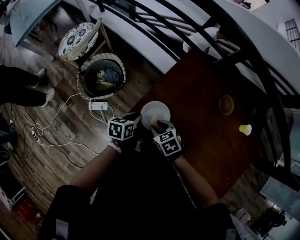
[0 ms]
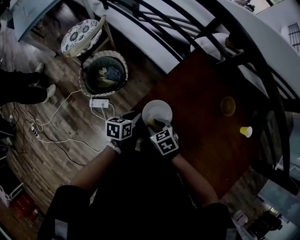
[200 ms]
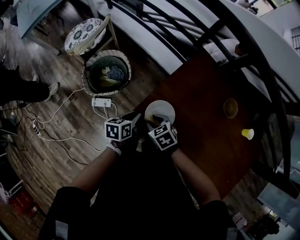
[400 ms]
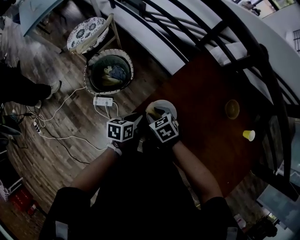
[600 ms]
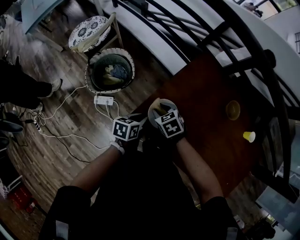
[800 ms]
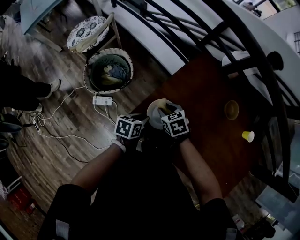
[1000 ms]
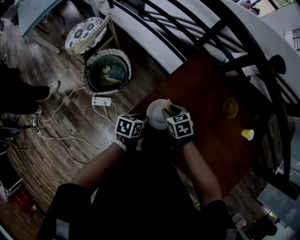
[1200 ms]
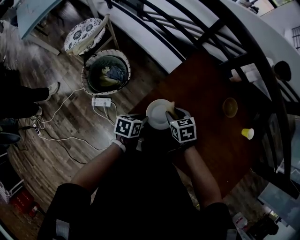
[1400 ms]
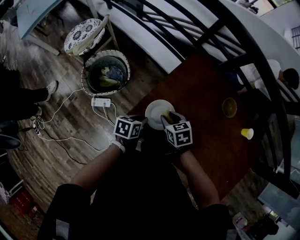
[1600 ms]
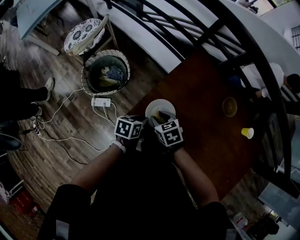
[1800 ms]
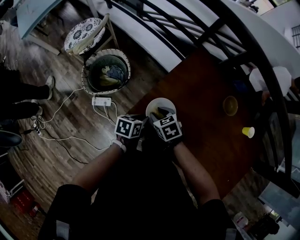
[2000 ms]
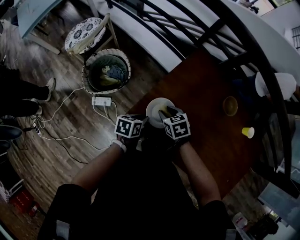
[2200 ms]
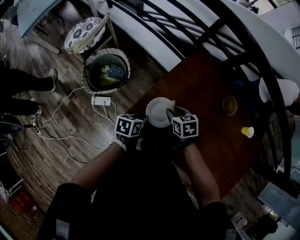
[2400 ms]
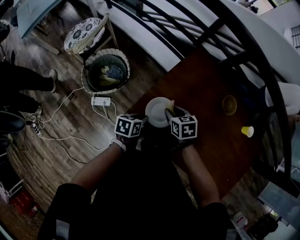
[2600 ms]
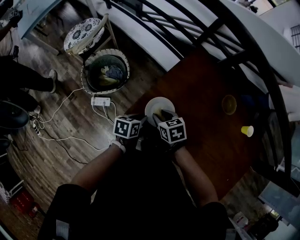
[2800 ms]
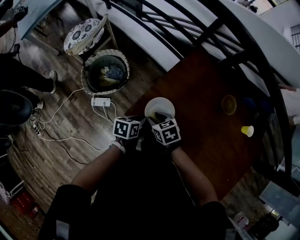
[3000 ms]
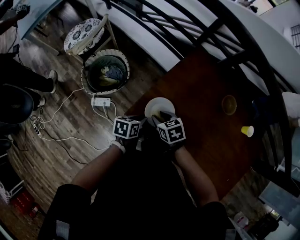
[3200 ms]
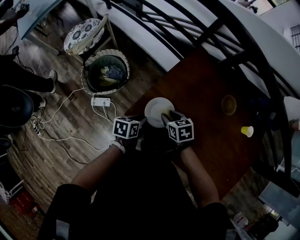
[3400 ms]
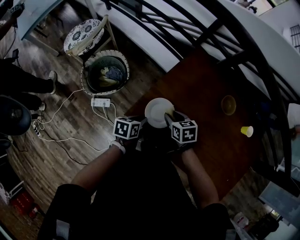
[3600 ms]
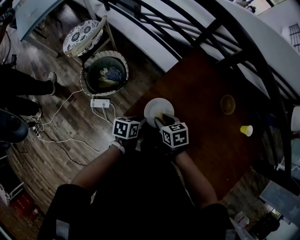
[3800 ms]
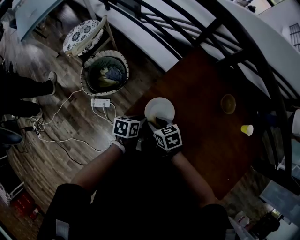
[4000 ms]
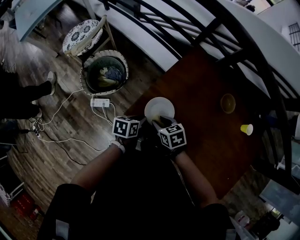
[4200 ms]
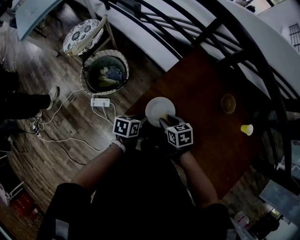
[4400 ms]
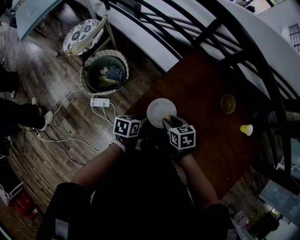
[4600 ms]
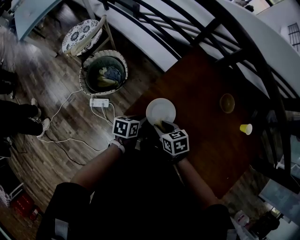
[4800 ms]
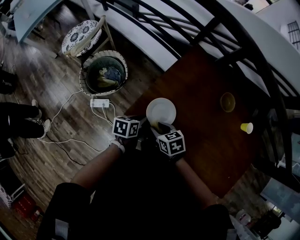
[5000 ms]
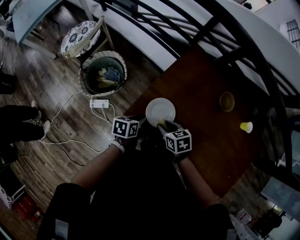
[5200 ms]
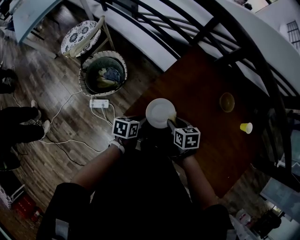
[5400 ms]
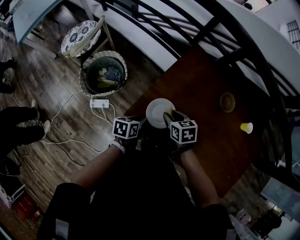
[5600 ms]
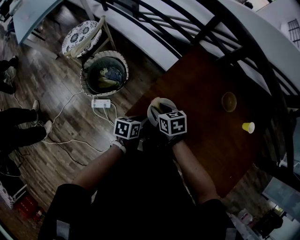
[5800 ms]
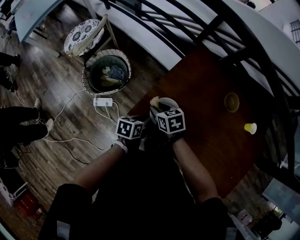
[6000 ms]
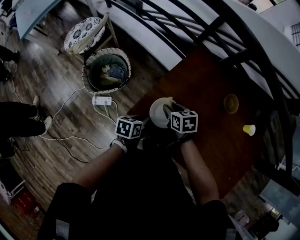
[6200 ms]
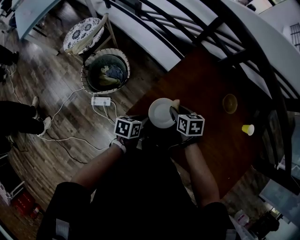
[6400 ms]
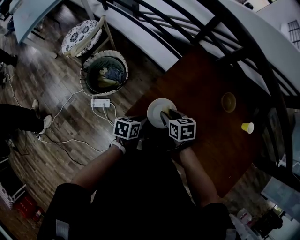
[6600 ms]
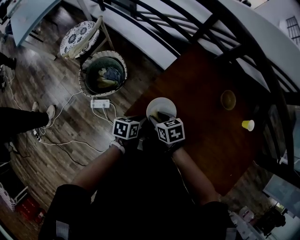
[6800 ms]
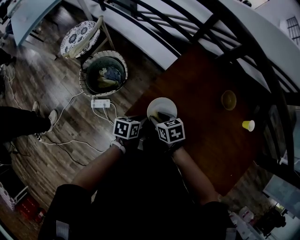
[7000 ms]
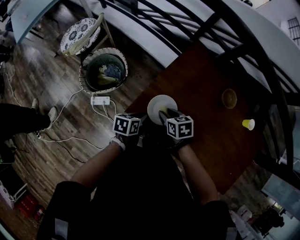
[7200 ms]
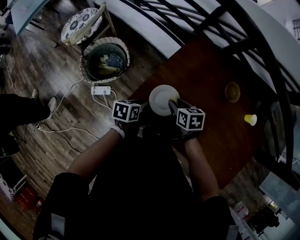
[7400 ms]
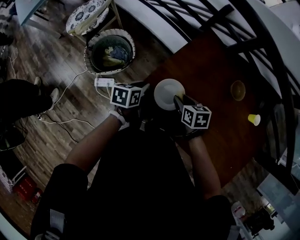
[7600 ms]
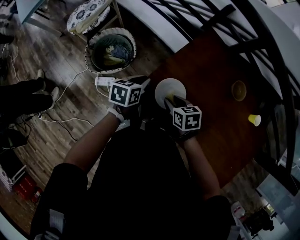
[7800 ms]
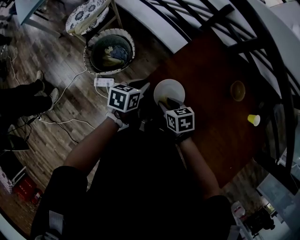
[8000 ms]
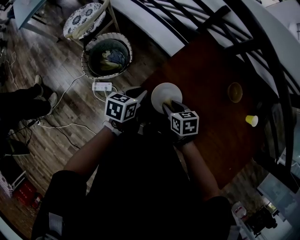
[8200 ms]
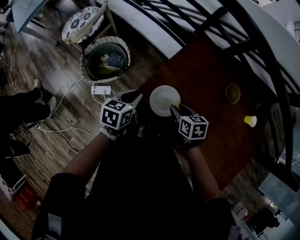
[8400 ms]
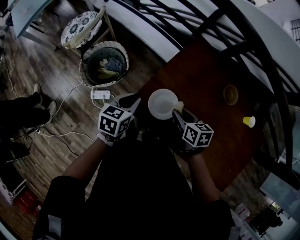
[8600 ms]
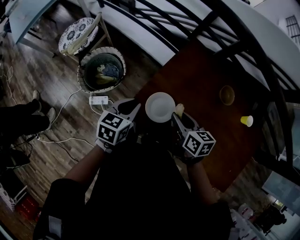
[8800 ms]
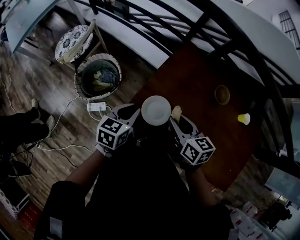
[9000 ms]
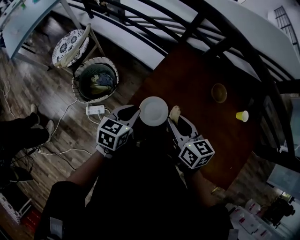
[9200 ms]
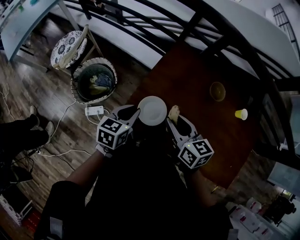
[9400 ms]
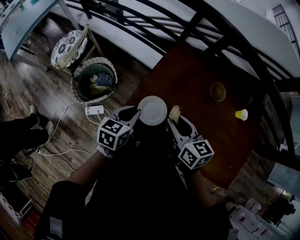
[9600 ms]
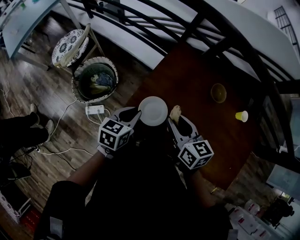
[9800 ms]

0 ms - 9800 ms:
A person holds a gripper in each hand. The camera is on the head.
0 ms - 1400 ms: The right gripper travels forward by some 5 cm.
1400 ms - 2800 ms: The right gripper swings left and right, roughly 5 cm each way, with 2 reversals.
2800 ms - 4200 ms: The right gripper moves some 5 cm to the right and comes back.
4200 ms - 5600 ms: The right gripper swings left and right, some 10 cm each way, with 2 reversals.
5600 ms - 7000 ms: The right gripper goes left and right, some 10 cm each way, reversing 2 times.
7000 ms - 8400 ms: The right gripper moves left and right over about 10 cm, changing direction 2 times. The left gripper heads upward and forward, covering about 10 cm.
8400 ms - 9800 ms: The right gripper shifts some 15 cm upward, and changes its angle by approximately 30 degrees. Meanwhile the left gripper goes some 5 cm to the right and upward.

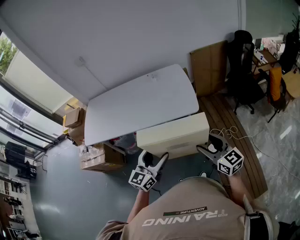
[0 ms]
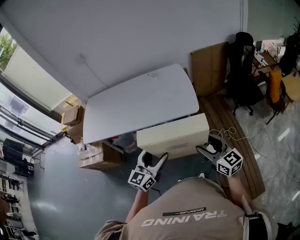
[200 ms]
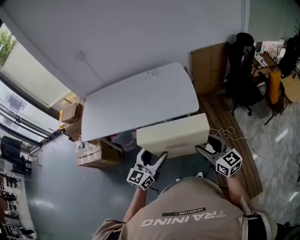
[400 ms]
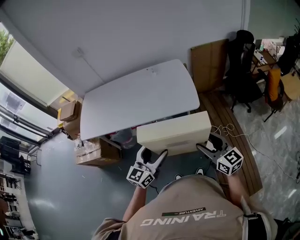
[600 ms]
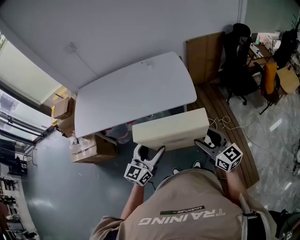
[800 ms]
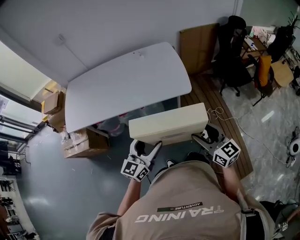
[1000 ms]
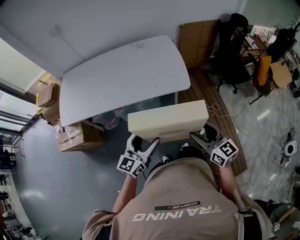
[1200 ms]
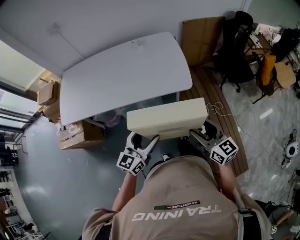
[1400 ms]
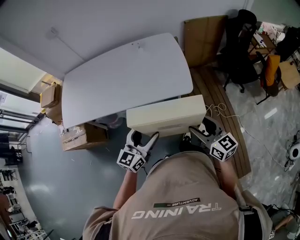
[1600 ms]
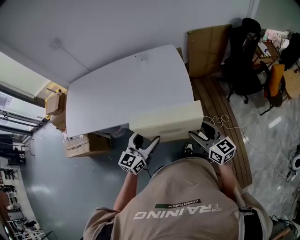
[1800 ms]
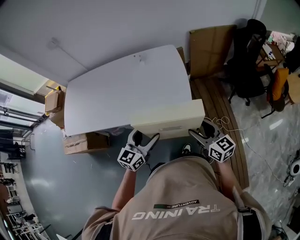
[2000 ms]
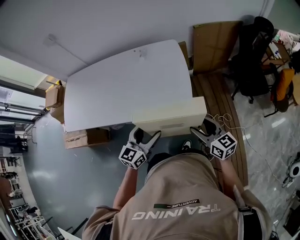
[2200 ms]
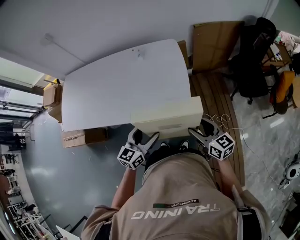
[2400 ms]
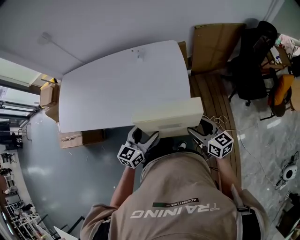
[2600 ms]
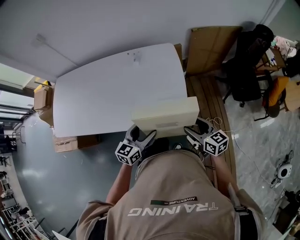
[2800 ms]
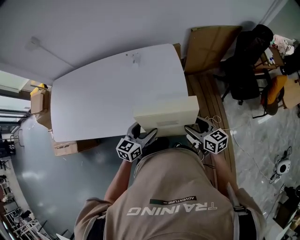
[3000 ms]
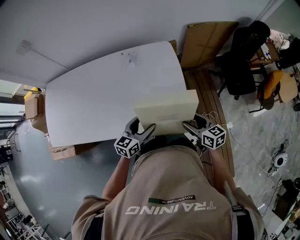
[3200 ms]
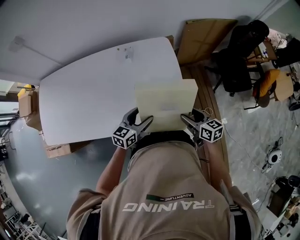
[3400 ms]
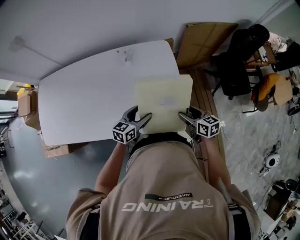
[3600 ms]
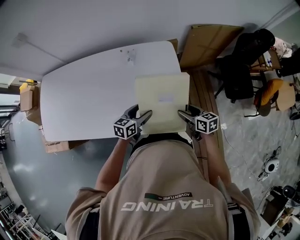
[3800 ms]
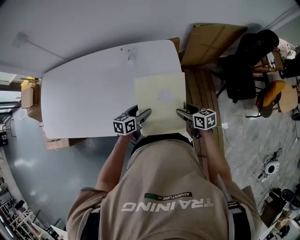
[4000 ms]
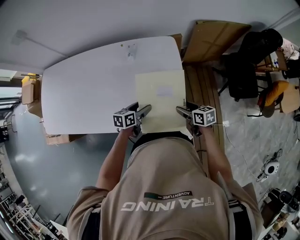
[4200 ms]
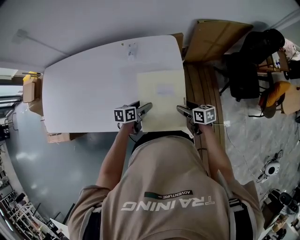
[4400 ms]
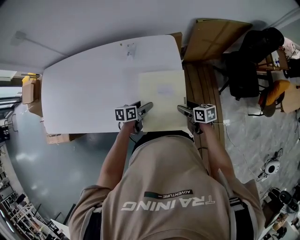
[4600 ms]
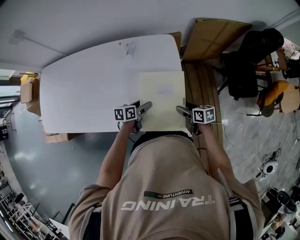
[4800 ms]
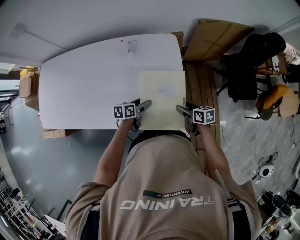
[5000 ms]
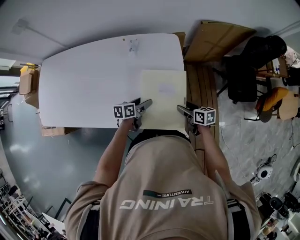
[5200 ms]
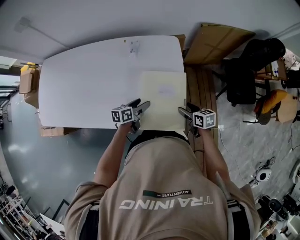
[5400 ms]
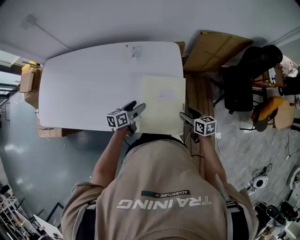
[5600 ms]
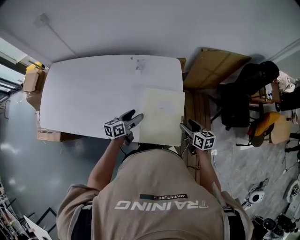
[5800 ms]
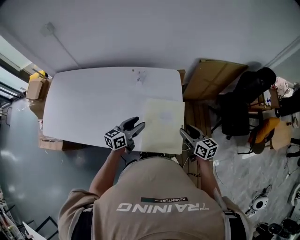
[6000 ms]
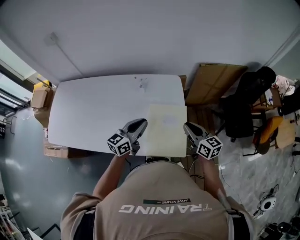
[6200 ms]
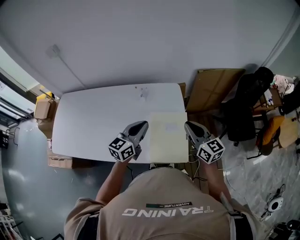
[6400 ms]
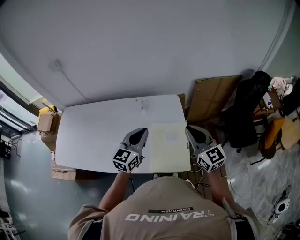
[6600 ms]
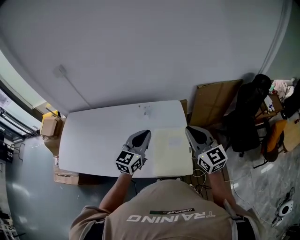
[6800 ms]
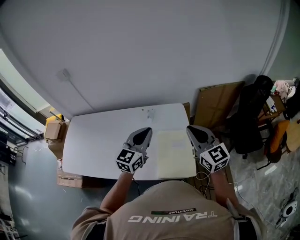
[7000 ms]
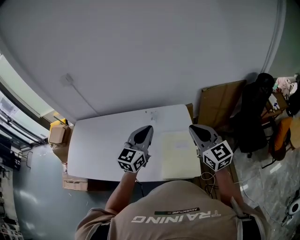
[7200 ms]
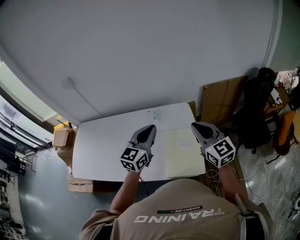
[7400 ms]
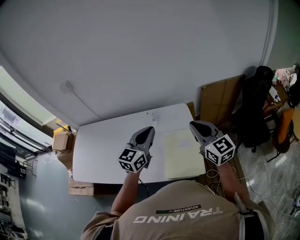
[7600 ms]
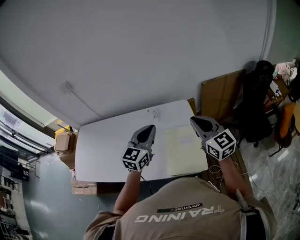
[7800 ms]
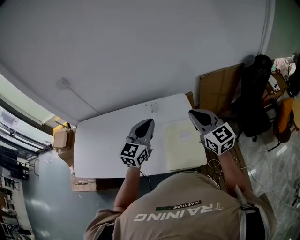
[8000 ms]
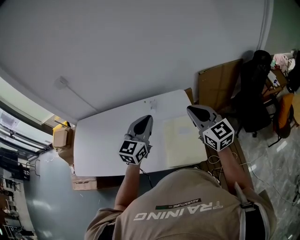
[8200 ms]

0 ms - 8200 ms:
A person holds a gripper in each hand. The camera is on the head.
0 ms - 1600 ms: The grippers both shift forward and downward by about 10 cm.
1600 ms - 3200 ms: The grippers both shift forward and downward by roughly 30 cm. The right gripper rotates roughly 20 degrees.
3200 ms - 5000 ms: The two grippers go roughly 15 cm downward and forward. The left gripper rotates approximately 40 degrees; the right gripper swivels roughly 20 degrees.
5000 ms - 6600 ms: Both grippers move upward, some 30 cm. The right gripper points its fingers some 40 degrees further upward, and closes its fingers; the left gripper swivels roughly 60 degrees, and closes up.
6600 ms - 8200 ms: The two grippers go about 5 cm upward.

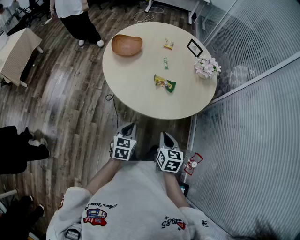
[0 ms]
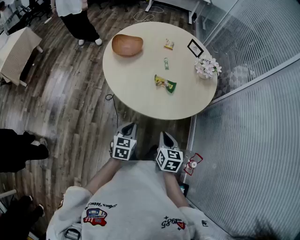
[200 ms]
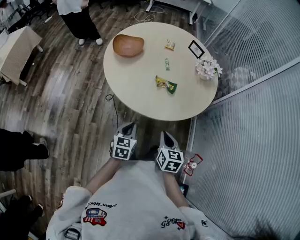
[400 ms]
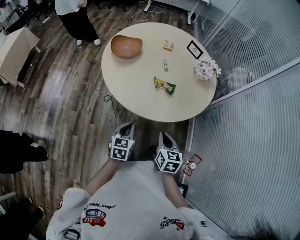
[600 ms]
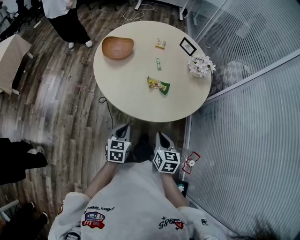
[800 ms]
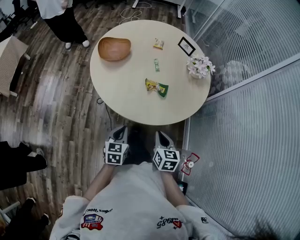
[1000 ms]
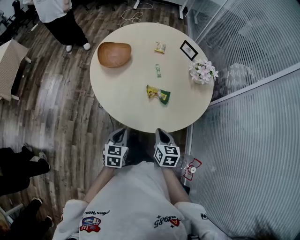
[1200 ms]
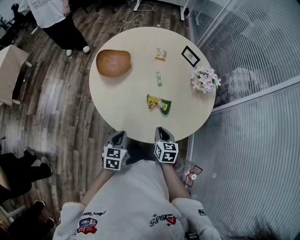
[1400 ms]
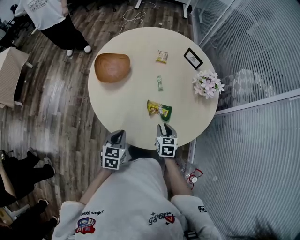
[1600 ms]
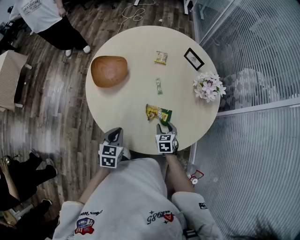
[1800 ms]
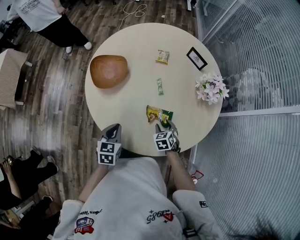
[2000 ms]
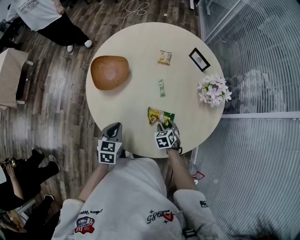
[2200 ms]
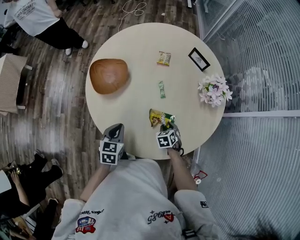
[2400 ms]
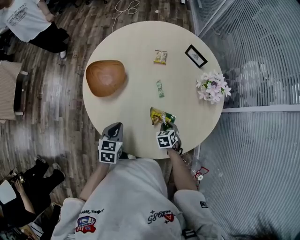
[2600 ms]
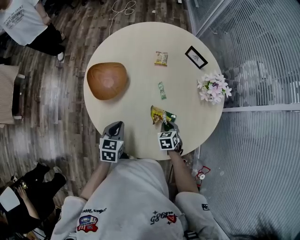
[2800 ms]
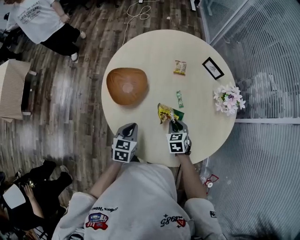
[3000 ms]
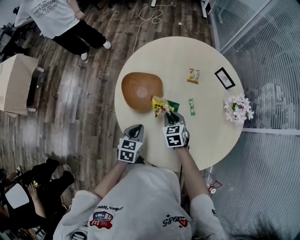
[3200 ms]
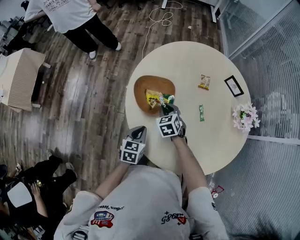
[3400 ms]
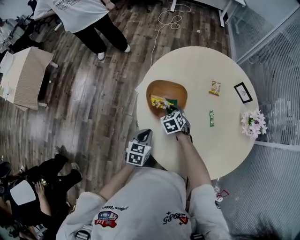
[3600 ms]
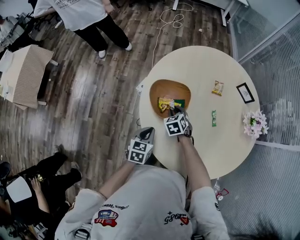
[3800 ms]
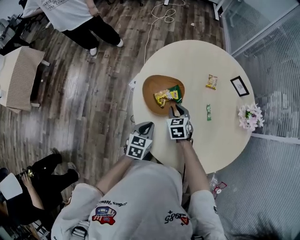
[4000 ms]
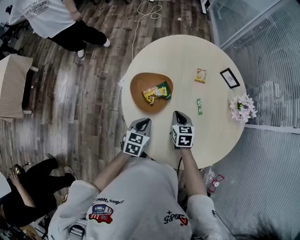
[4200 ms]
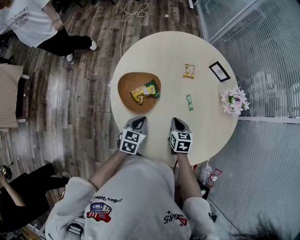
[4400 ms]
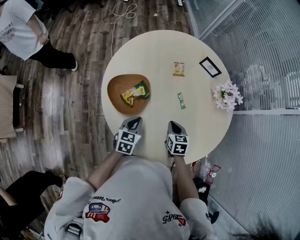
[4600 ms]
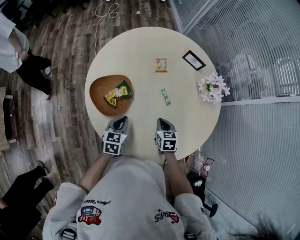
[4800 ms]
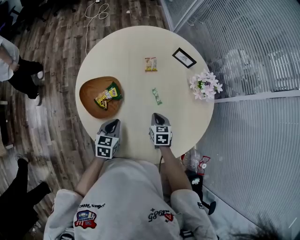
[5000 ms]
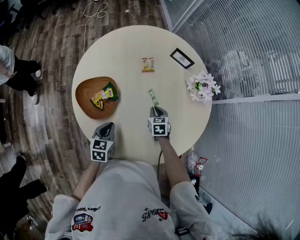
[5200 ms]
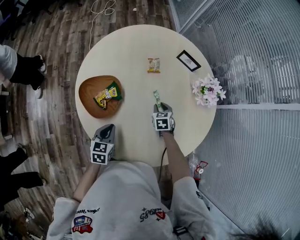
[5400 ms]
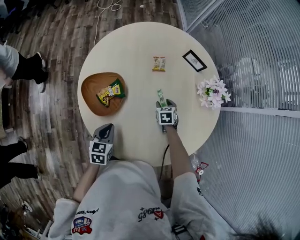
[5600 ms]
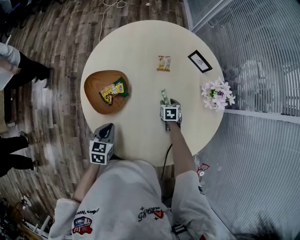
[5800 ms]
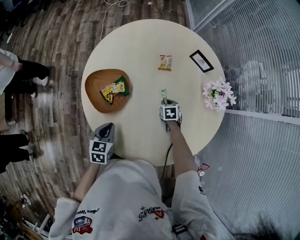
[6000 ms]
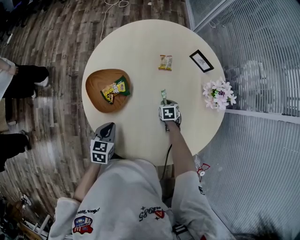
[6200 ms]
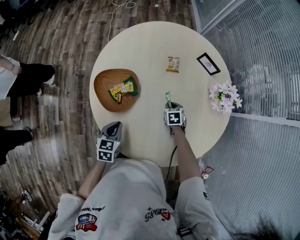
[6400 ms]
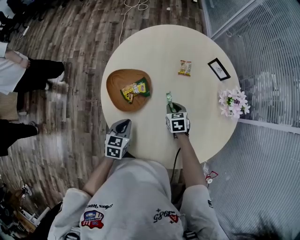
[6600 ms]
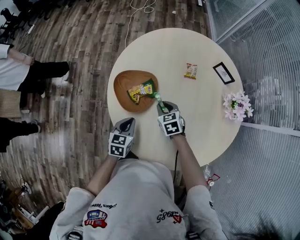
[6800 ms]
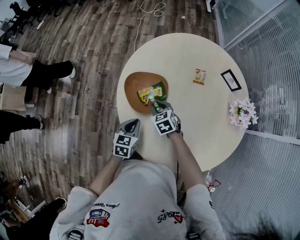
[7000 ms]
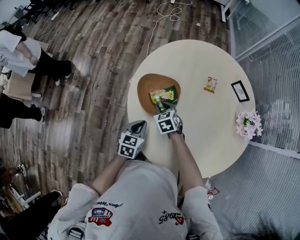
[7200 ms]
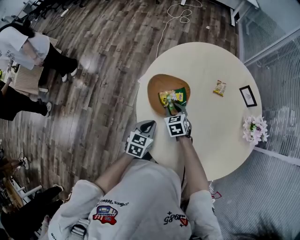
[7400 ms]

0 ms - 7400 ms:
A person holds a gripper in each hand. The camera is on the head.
0 ms - 1400 ms: Both grippers travel together forward, roughly 15 cm.
1400 ms - 3000 ms: Both grippers travel together forward, about 20 cm. The right gripper changes its angle by approximately 20 degrees, and opens, then closes again.
3000 ms - 4400 ms: The right gripper moves about 25 cm to the left and comes back, and rotates some 20 degrees; the left gripper heads forward, covering roughly 5 cm.
4400 ms - 6000 ms: The right gripper goes about 20 cm downward, forward and to the right, and opens and closes again.
6000 ms - 7400 ms: The left gripper travels to the left by some 5 cm. The right gripper is displaced to the left by some 30 cm, and turns by about 30 degrees.
